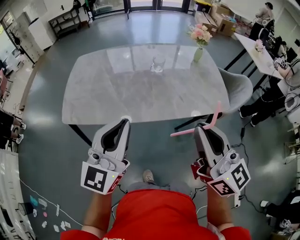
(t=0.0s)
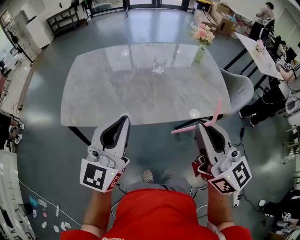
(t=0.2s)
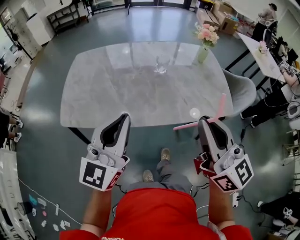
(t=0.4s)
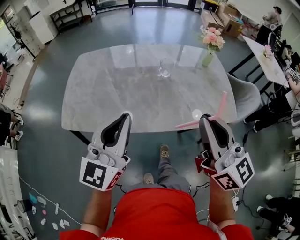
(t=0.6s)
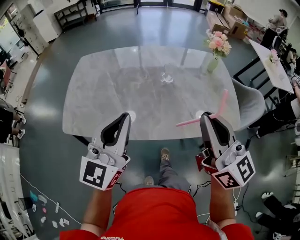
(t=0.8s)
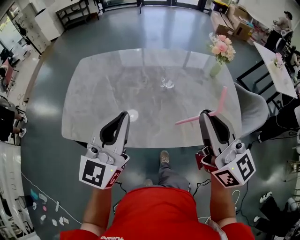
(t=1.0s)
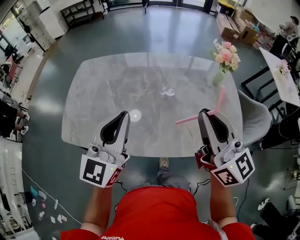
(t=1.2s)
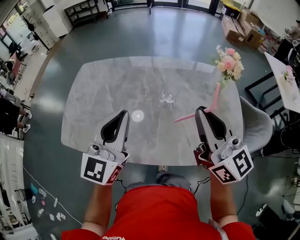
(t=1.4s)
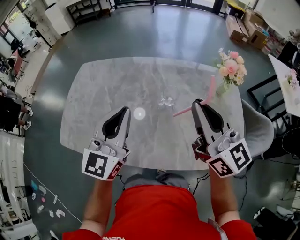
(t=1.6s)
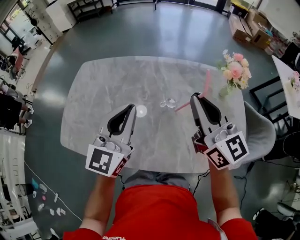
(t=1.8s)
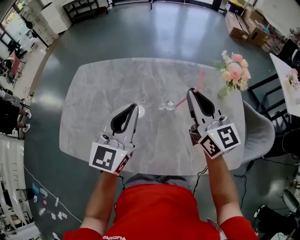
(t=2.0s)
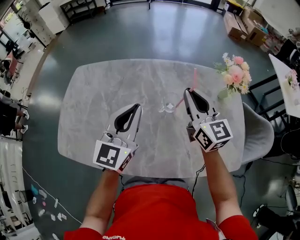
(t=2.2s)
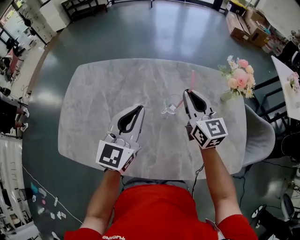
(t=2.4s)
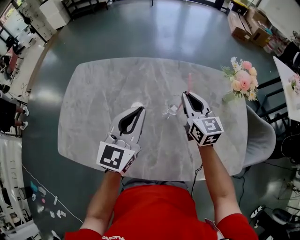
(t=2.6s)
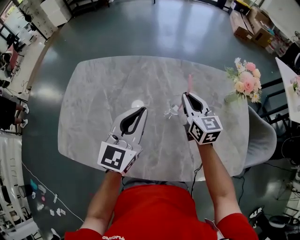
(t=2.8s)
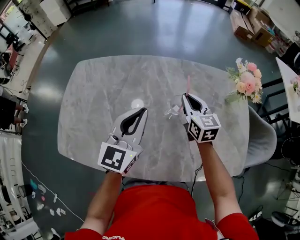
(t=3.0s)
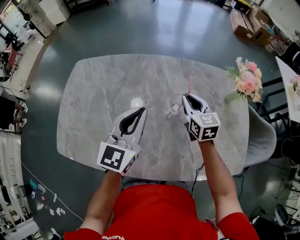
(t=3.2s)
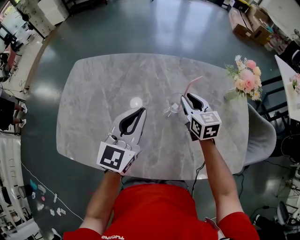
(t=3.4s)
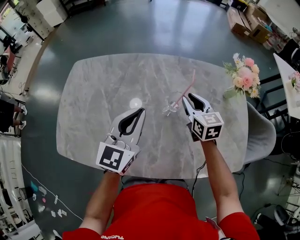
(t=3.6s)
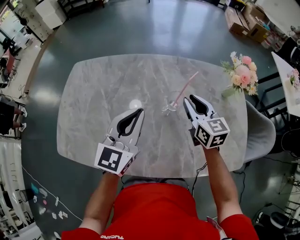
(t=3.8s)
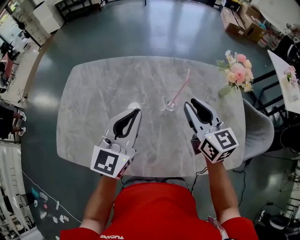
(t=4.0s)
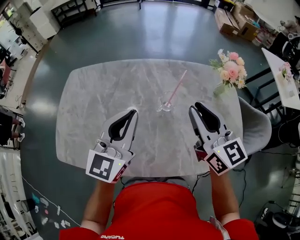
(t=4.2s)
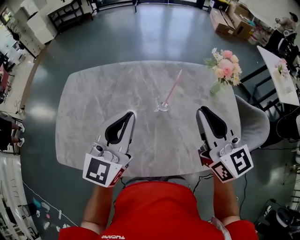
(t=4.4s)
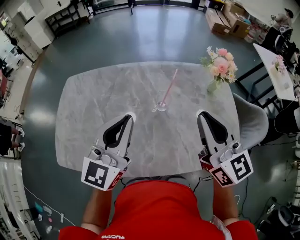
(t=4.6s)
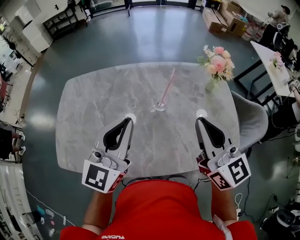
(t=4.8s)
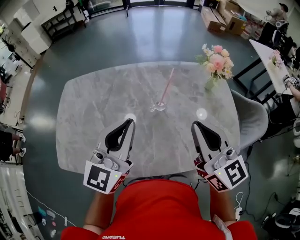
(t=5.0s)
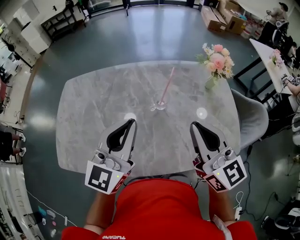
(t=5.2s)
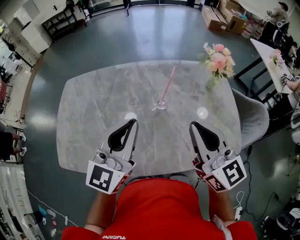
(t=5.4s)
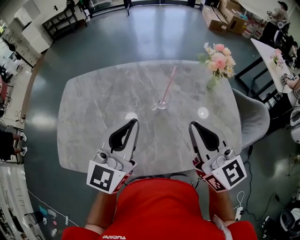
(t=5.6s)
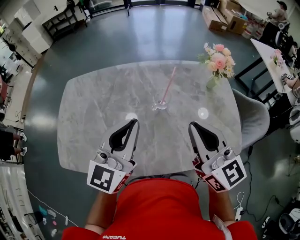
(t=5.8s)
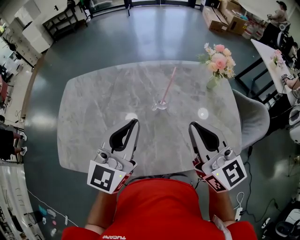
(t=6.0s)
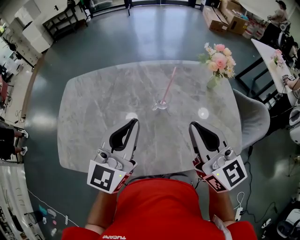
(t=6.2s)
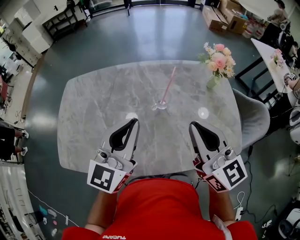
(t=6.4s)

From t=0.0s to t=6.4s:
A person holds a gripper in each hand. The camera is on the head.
From t=0.0s to t=1.6s: Both grippers travel together forward, about 35 cm.
From t=1.6s to t=3.2s: The left gripper shifts roughly 15 cm forward and downward; the right gripper travels downward and forward by about 30 cm, and angles its fingers downward, by some 30 degrees.
From t=3.2s to t=4.8s: The left gripper shifts about 10 cm upward and backward. Meanwhile the right gripper travels upward and backward by roughly 30 cm, and turns by roughly 30 degrees.
From t=4.8s to t=6.4s: The grippers make only small movements.

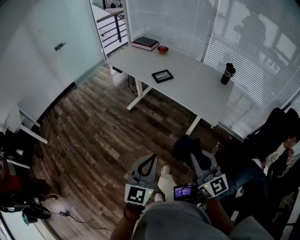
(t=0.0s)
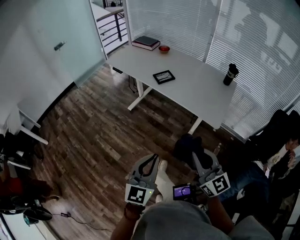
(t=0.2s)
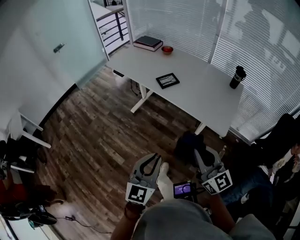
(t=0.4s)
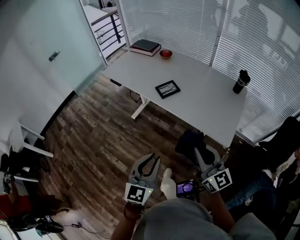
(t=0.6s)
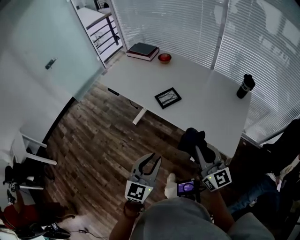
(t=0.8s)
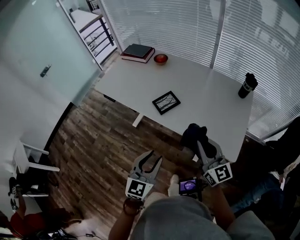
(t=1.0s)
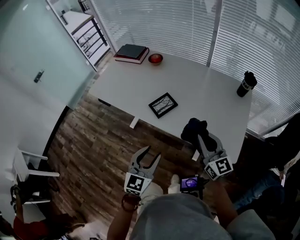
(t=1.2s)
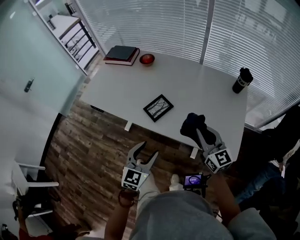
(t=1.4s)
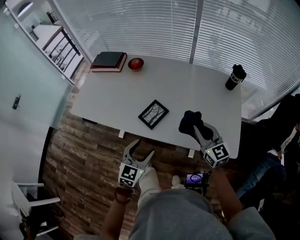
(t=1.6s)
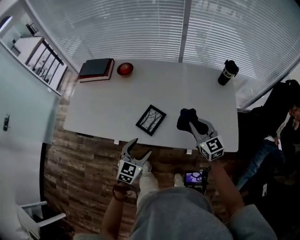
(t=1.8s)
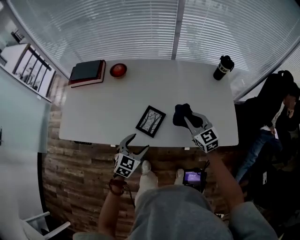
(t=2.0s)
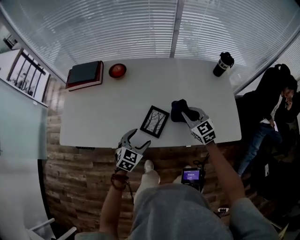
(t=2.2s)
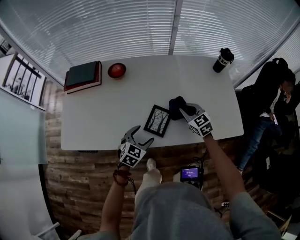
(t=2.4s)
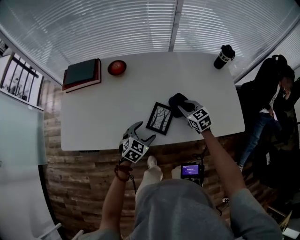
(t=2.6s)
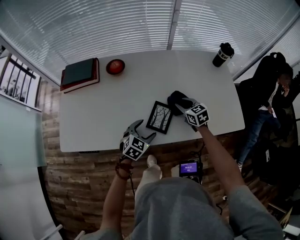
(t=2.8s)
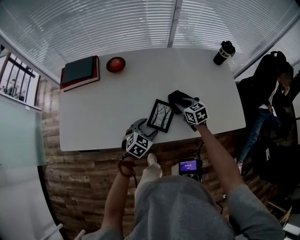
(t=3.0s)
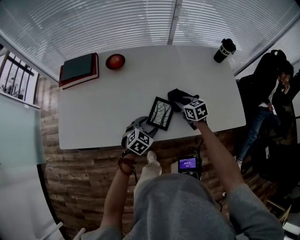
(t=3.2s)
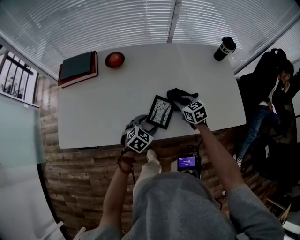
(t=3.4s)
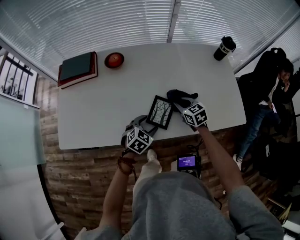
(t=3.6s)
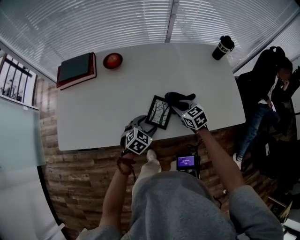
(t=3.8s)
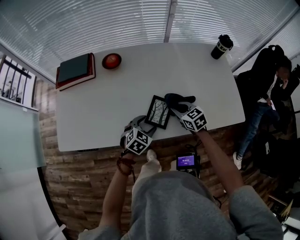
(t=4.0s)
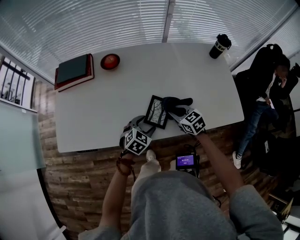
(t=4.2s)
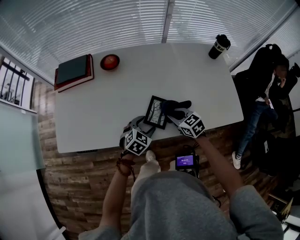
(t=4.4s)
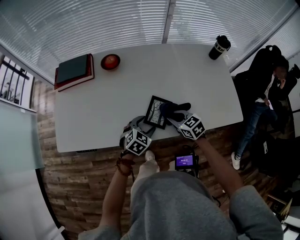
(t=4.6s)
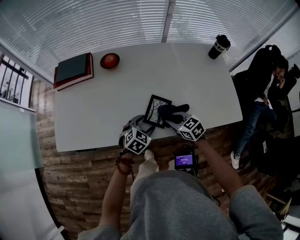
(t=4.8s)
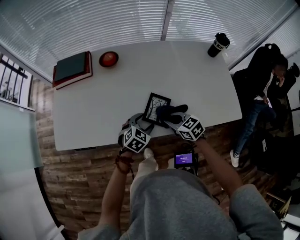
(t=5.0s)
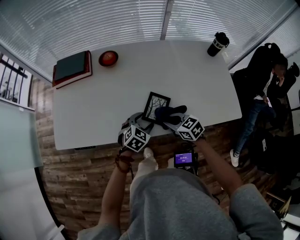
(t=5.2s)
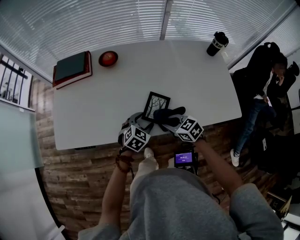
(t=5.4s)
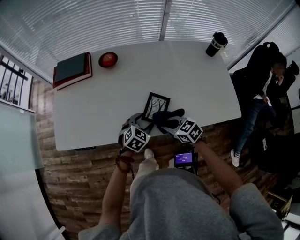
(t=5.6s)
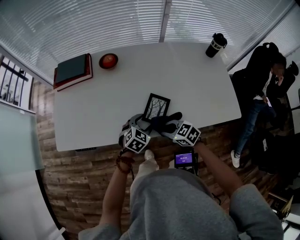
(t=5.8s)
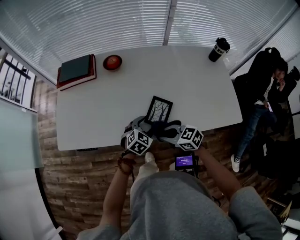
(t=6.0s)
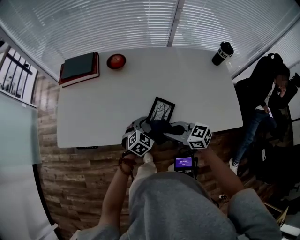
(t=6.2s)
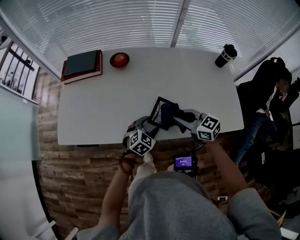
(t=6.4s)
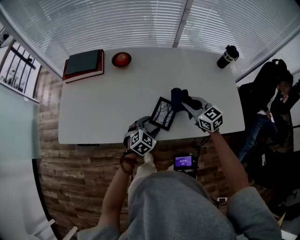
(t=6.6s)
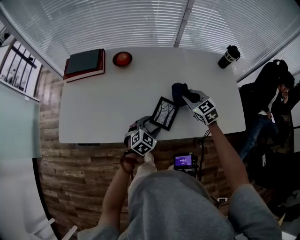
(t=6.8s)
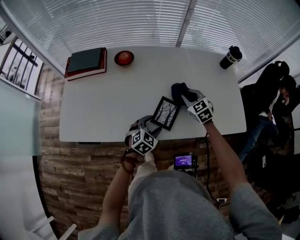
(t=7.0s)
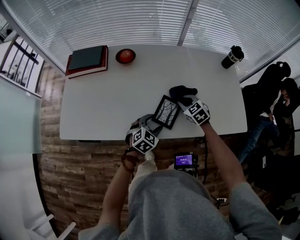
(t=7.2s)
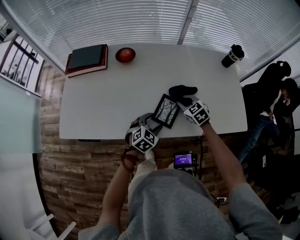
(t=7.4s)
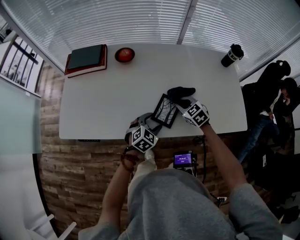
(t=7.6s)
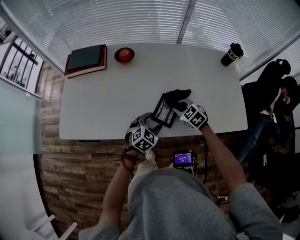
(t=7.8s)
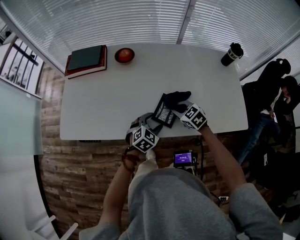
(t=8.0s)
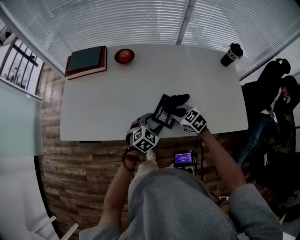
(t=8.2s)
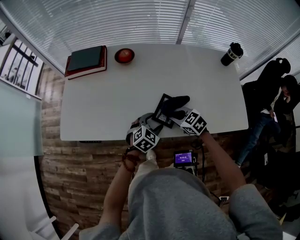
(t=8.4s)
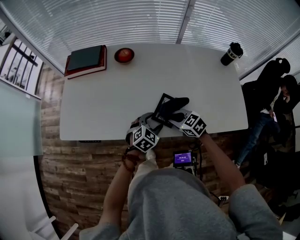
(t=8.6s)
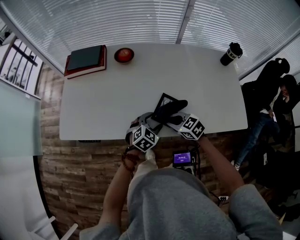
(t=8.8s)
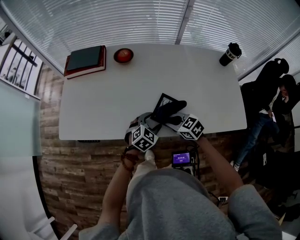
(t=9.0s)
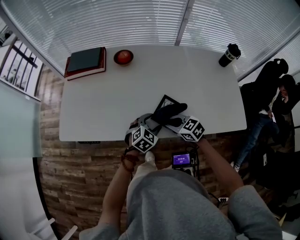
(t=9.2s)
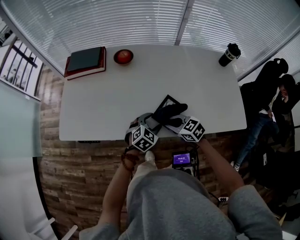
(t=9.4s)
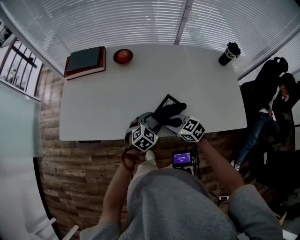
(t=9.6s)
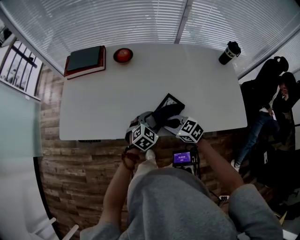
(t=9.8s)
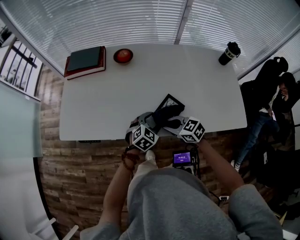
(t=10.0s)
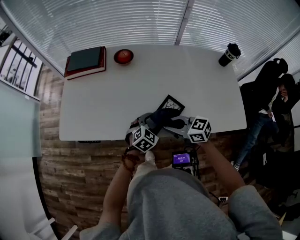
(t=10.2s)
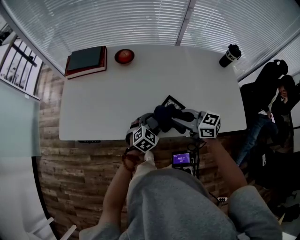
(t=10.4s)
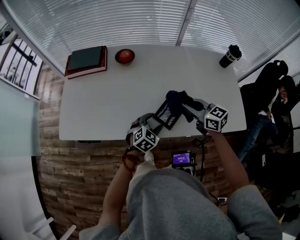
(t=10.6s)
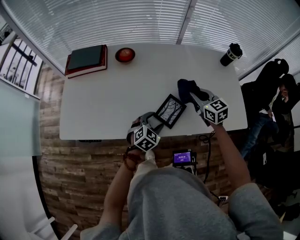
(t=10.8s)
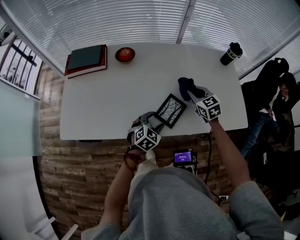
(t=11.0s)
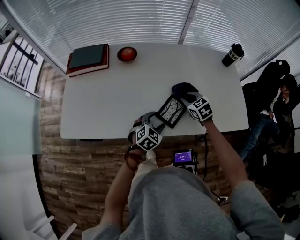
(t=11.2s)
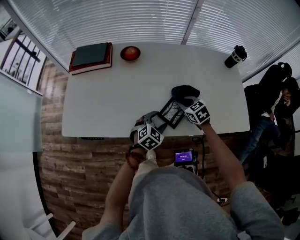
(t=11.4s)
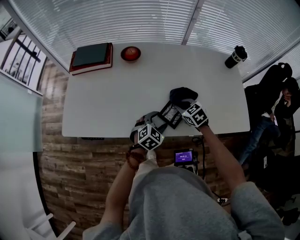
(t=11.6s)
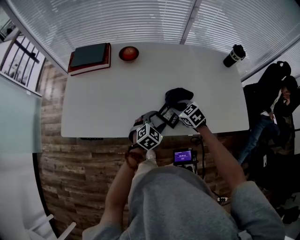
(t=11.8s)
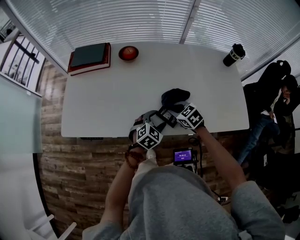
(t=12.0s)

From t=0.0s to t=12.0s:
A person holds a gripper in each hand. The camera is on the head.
From t=0.0s to t=1.6s: The pair of grippers is taken about 50 cm. The left gripper swivels about 40 degrees, and opens its fingers. The right gripper swivels approximately 30 degrees.
From t=1.6s to t=3.0s: The left gripper moves forward, downward and to the left, roughly 20 cm, and changes its angle by about 40 degrees. The right gripper goes some 25 cm downward, to the left and forward, and tilts its fingers about 30 degrees downward.
From t=3.0s to t=4.4s: The right gripper travels backward by roughly 10 cm.
From t=4.4s to t=6.0s: The right gripper moves backward and to the left, about 15 cm, and swivels about 20 degrees.
From t=6.0s to t=7.6s: The right gripper goes roughly 20 cm forward and to the right, and turns by roughly 30 degrees.
From t=7.6s to t=9.0s: The right gripper is displaced backward and to the left by roughly 10 cm, and changes its angle by approximately 20 degrees.
From t=9.0s to t=10.4s: The right gripper is displaced upward by roughly 10 cm, and swivels roughly 30 degrees.
From t=10.4s to t=12.0s: The right gripper is displaced downward and forward by roughly 15 cm, and tilts its fingers some 30 degrees downward.

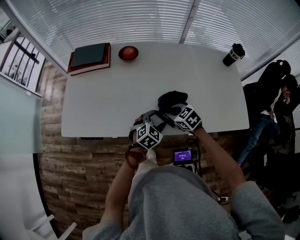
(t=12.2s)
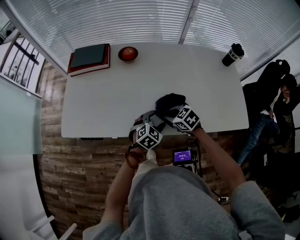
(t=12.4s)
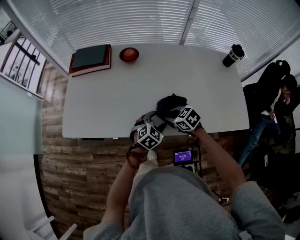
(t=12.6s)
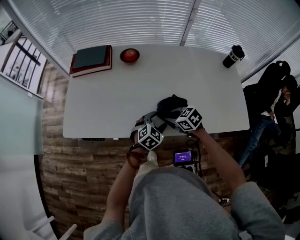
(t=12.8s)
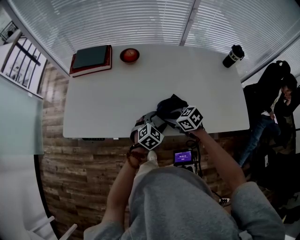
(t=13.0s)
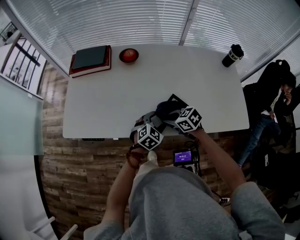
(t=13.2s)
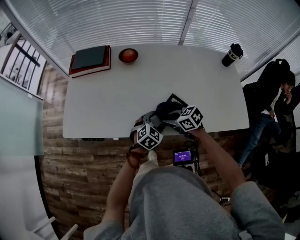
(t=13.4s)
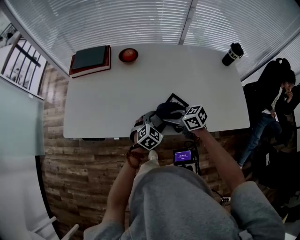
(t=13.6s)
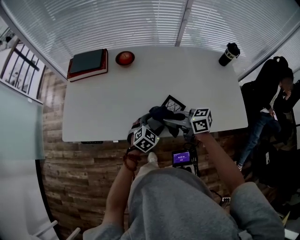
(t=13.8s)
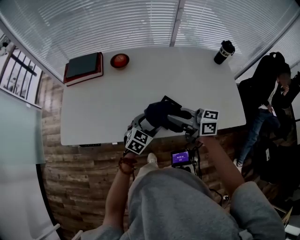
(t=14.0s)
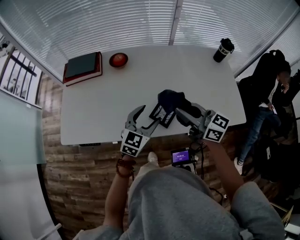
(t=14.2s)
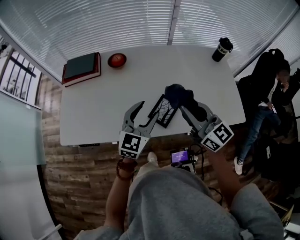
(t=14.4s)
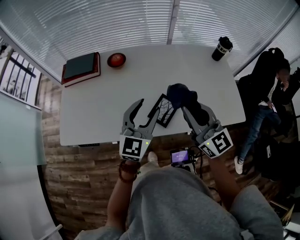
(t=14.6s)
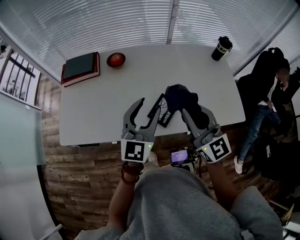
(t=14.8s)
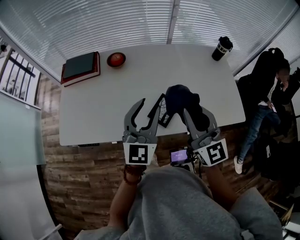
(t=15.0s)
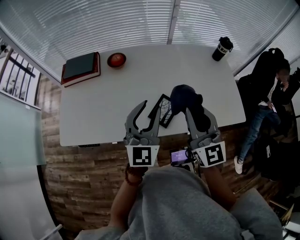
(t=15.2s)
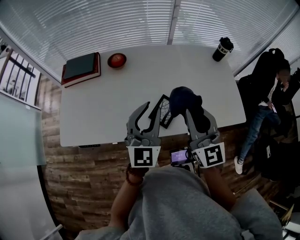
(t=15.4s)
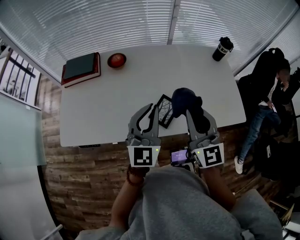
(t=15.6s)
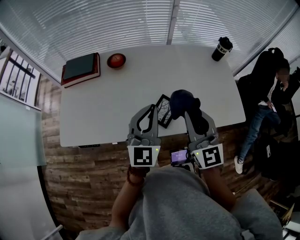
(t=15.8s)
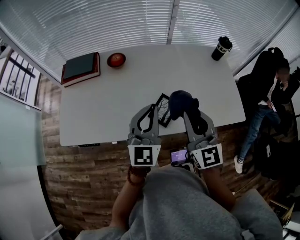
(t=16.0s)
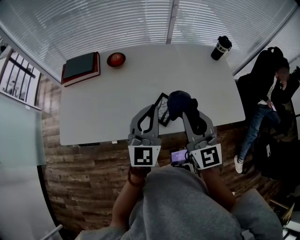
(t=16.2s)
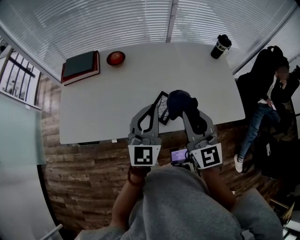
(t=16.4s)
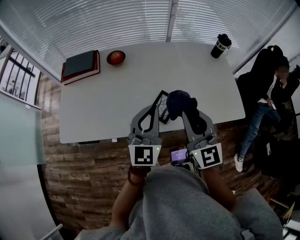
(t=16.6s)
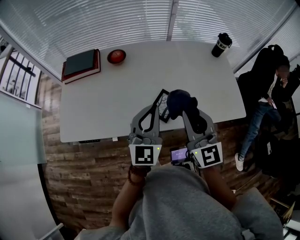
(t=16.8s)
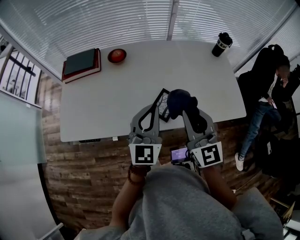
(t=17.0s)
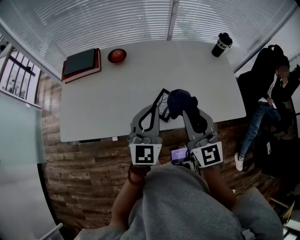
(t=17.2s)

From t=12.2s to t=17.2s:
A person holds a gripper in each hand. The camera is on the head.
From t=12.2s to t=13.8s: The right gripper goes approximately 10 cm upward, and tips its fingers upward by about 40 degrees.
From t=13.8s to t=15.6s: The right gripper heads upward and to the right, covering about 20 cm, and rotates approximately 70 degrees. The left gripper moves upward, roughly 25 cm, angles its fingers upward, by roughly 40 degrees, and closes its fingers.
From t=15.6s to t=17.2s: The grippers move only a little.
